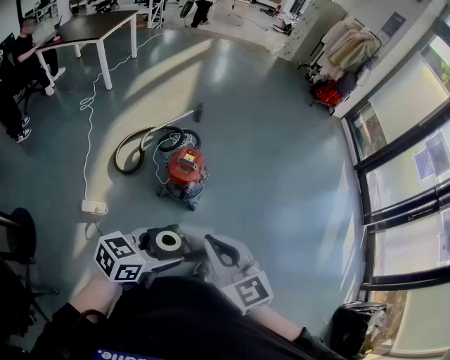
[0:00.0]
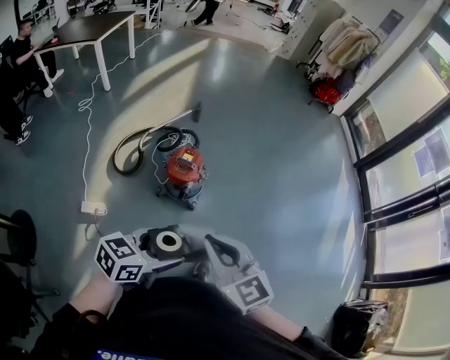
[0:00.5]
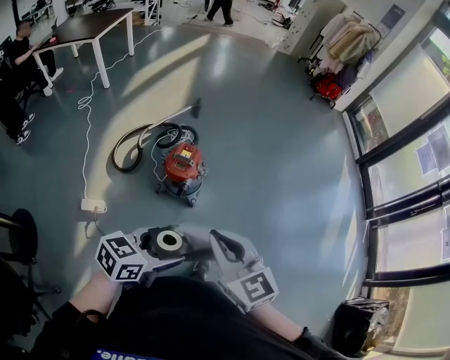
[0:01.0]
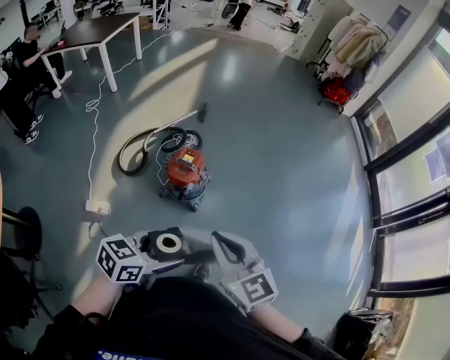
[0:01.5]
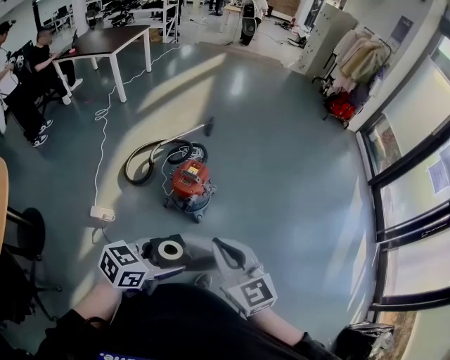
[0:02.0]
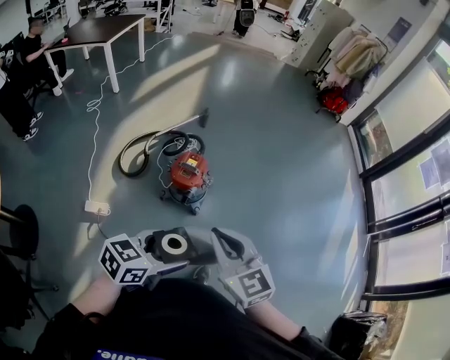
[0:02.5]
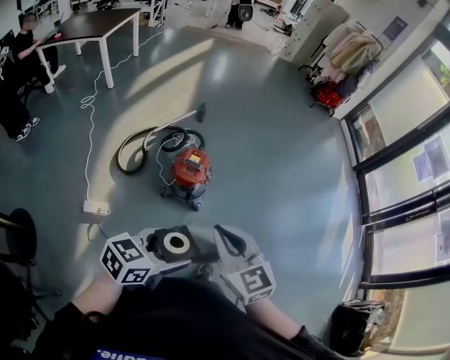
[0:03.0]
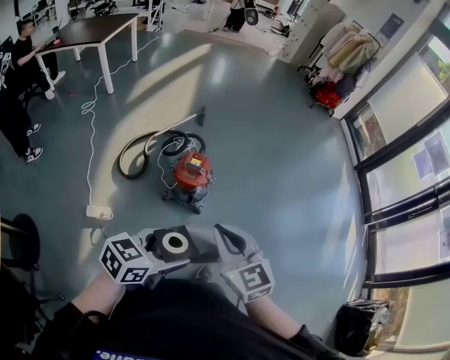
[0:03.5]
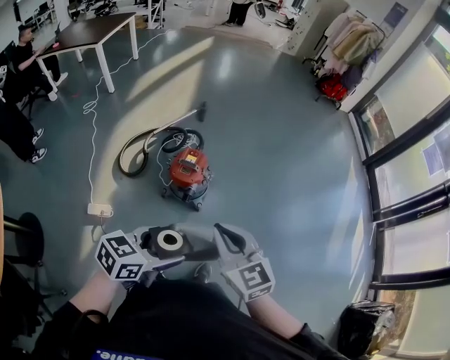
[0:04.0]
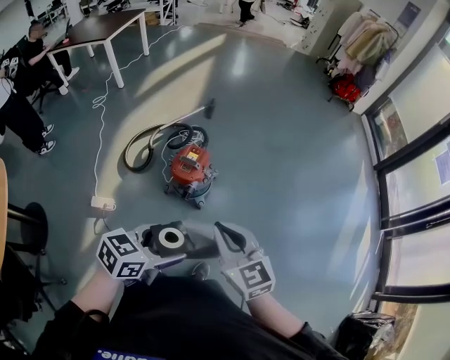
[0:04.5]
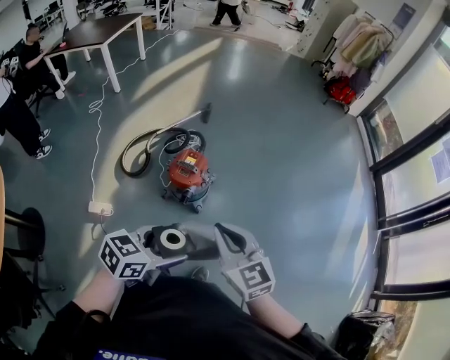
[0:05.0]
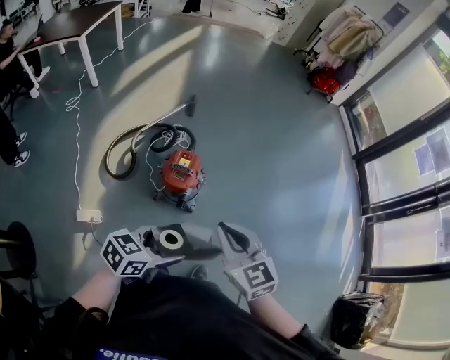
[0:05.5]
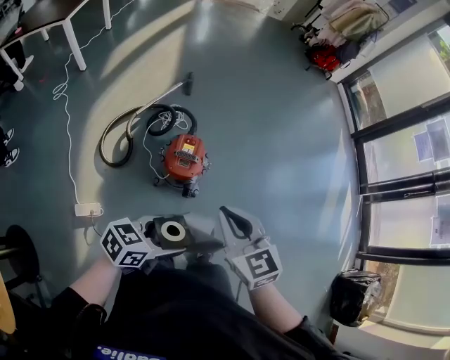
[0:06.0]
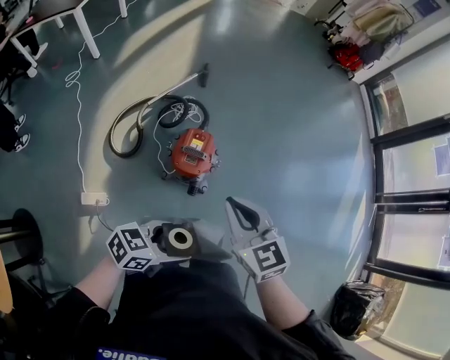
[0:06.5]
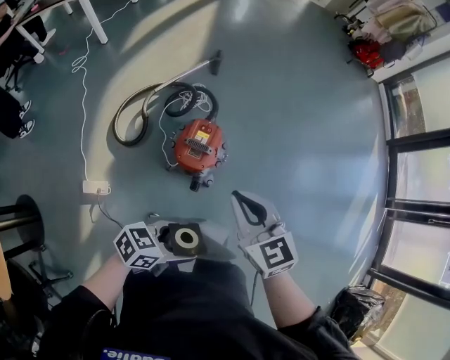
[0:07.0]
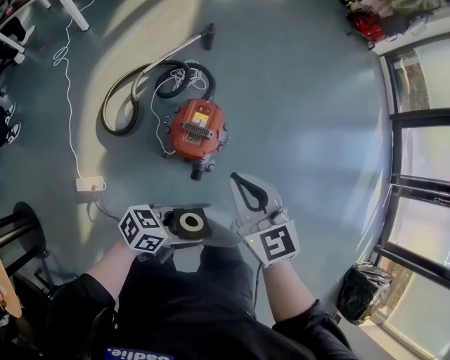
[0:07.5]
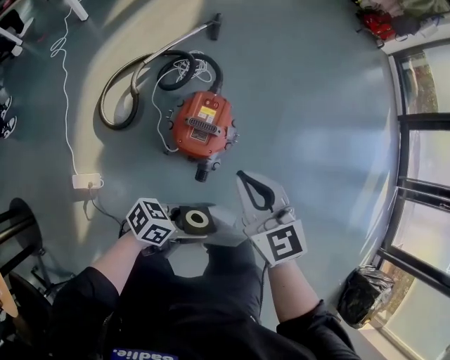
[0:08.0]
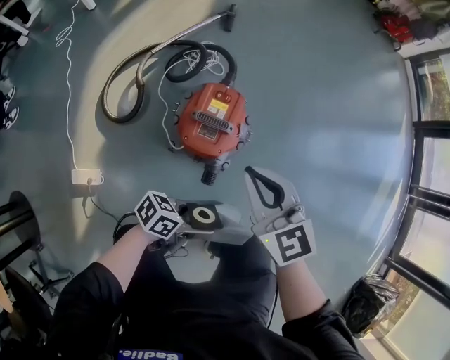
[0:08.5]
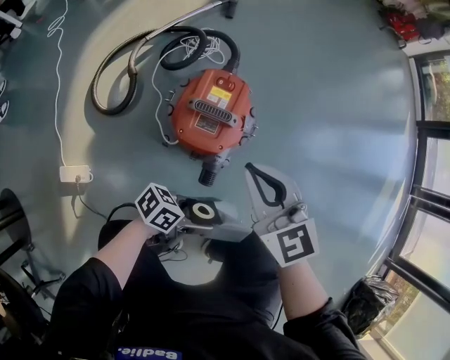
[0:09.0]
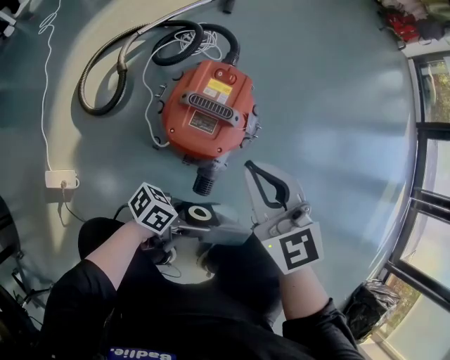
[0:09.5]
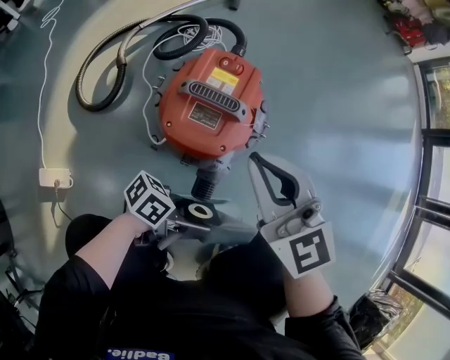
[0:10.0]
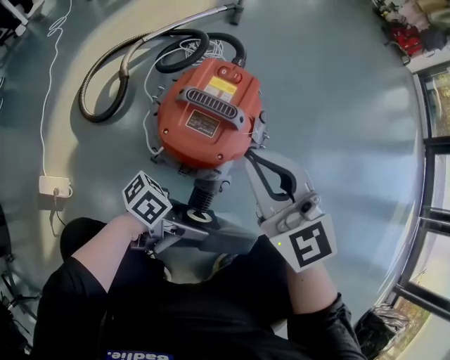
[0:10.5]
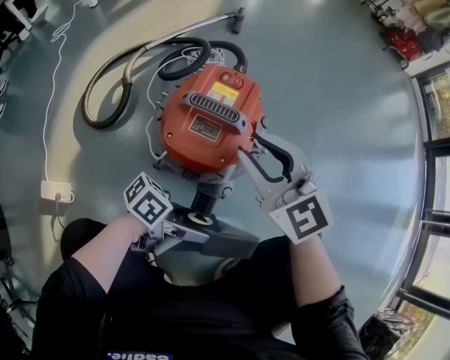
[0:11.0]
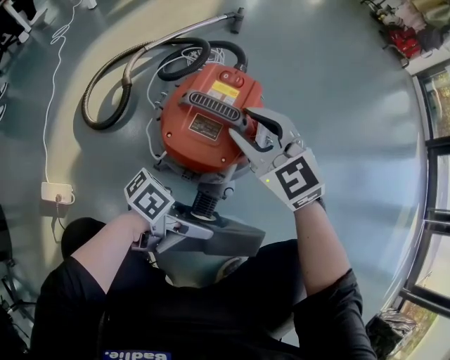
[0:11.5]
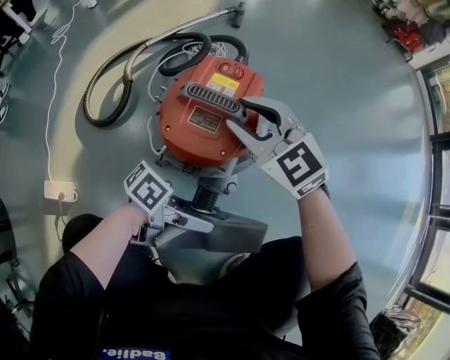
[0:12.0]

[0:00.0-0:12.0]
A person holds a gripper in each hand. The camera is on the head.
0:00.0 to 0:02.0: Both grippers move to the right, about 5 cm.
0:04.0 to 0:06.0: The right gripper is displaced to the left and forward by roughly 15 cm; the left gripper goes about 15 cm to the left, forward and downward.
0:06.0 to 0:08.0: Both grippers move downward, roughly 25 cm. The left gripper rotates approximately 20 degrees.
0:08.0 to 0:10.0: Both grippers travel together downward, some 25 cm.
0:10.0 to 0:12.0: The right gripper heads downward, covering approximately 10 cm, swivels some 20 degrees, and opens its fingers.

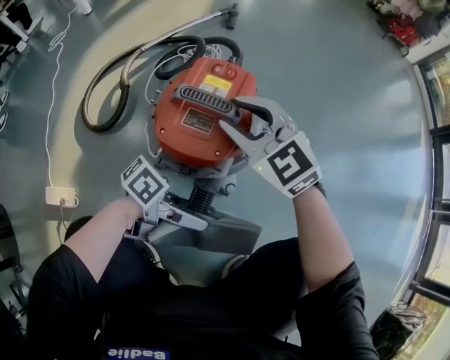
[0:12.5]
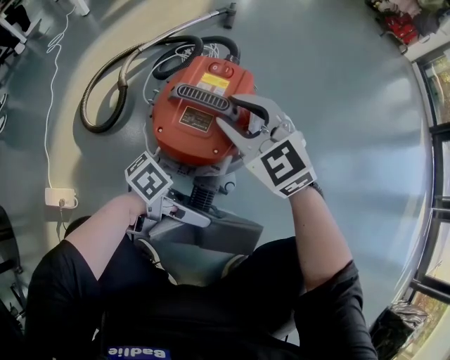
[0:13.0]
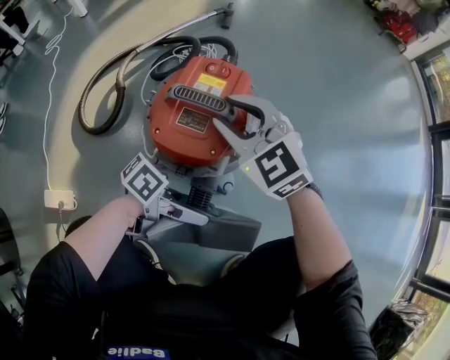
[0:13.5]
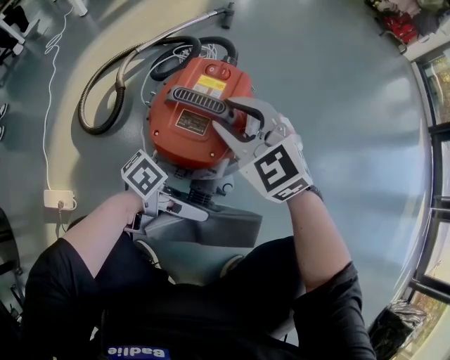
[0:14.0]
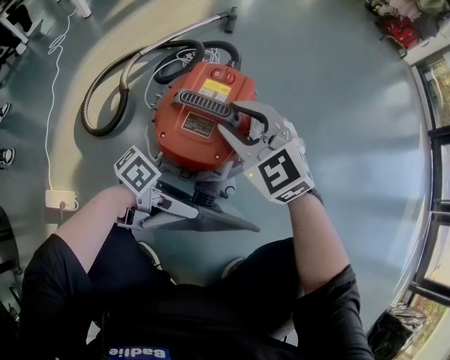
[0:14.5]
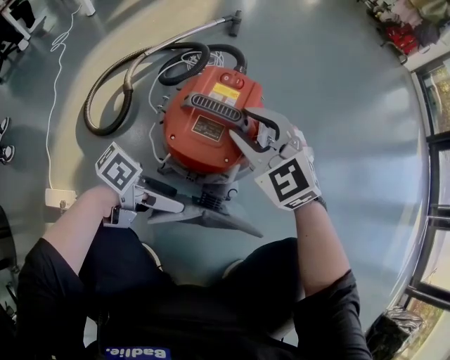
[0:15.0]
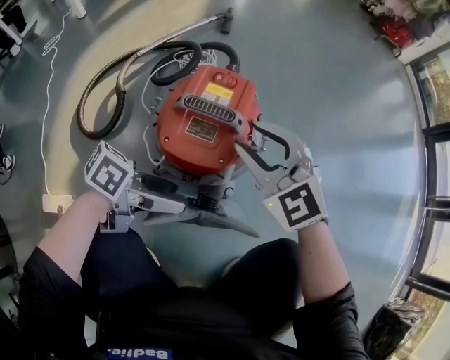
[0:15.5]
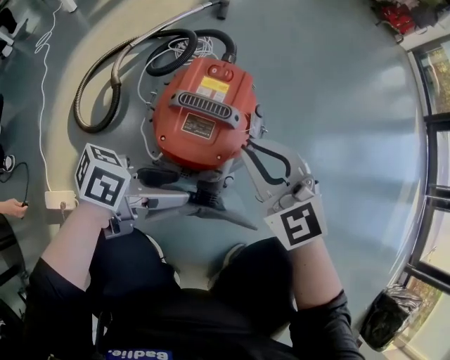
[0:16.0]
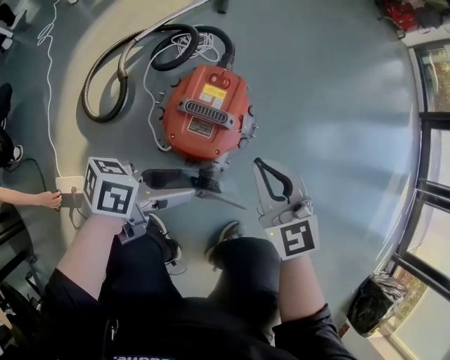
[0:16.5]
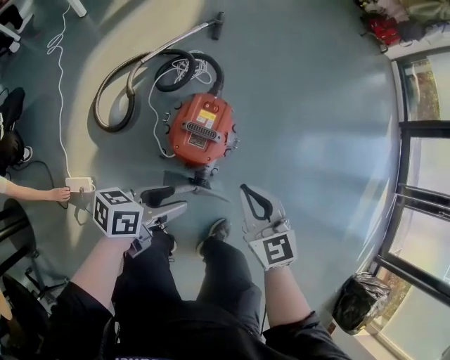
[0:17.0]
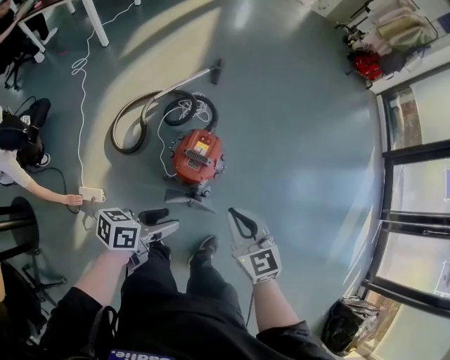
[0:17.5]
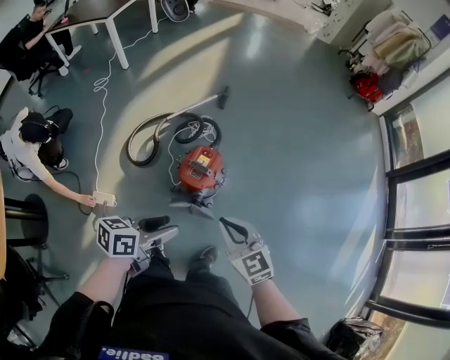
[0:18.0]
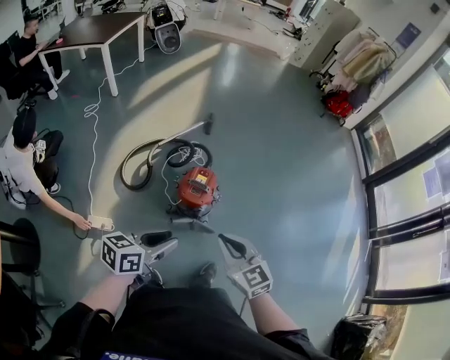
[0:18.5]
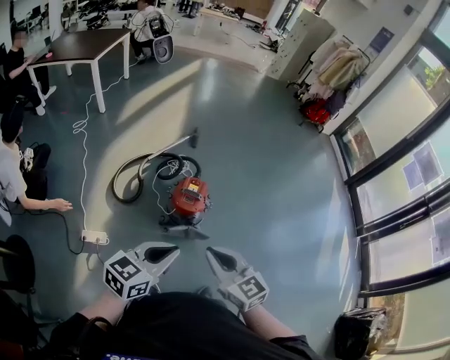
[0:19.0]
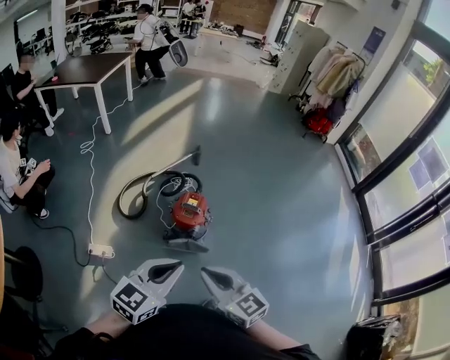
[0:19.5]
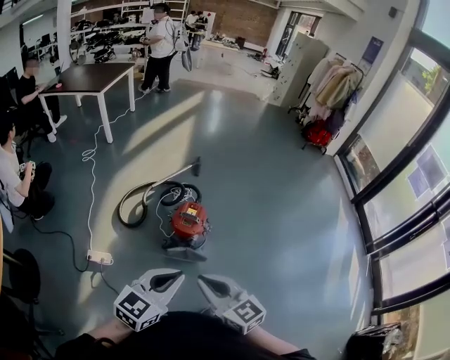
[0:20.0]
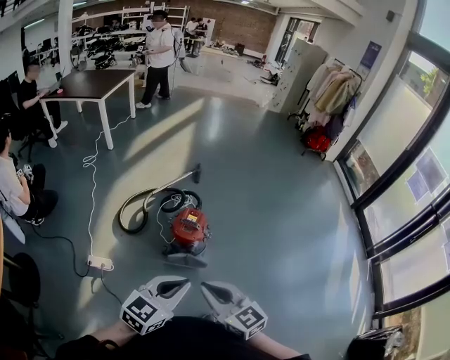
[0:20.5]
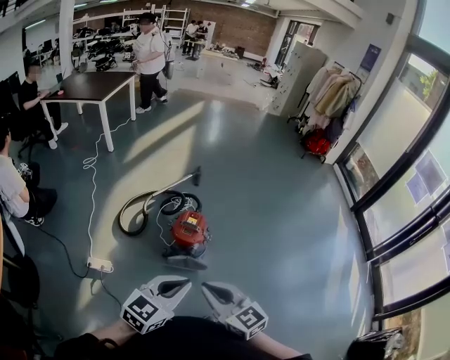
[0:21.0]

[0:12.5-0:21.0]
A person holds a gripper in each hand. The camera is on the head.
0:12.5 to 0:14.5: The grippers stay close to where they were, moving slightly.
0:14.5 to 0:16.5: Both grippers travel together upward, approximately 15 cm. The right gripper changes its angle by approximately 30 degrees, and closes its fingers. The left gripper rotates about 30 degrees, and closes up.
0:16.5 to 0:19.0: Both grippers move upward and backward, about 50 cm. The left gripper rotates about 40 degrees, and closes.
0:19.0 to 0:21.0: The left gripper heads to the right, covering some 10 cm; the right gripper travels backward by some 5 cm.

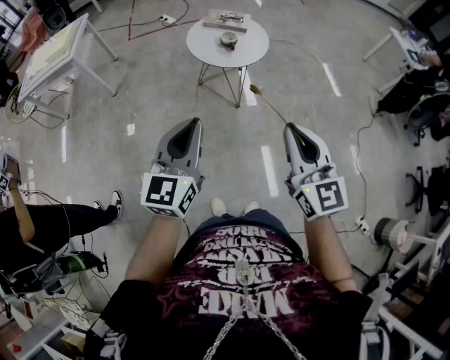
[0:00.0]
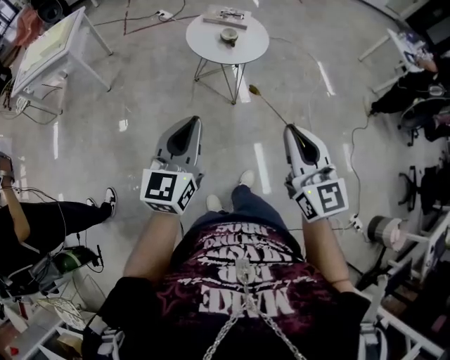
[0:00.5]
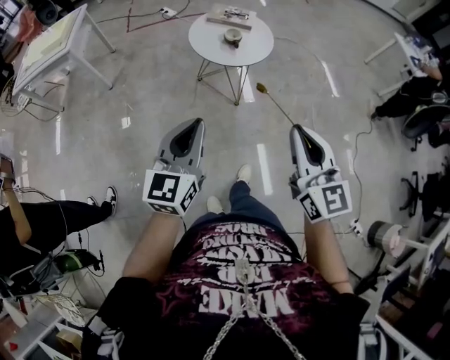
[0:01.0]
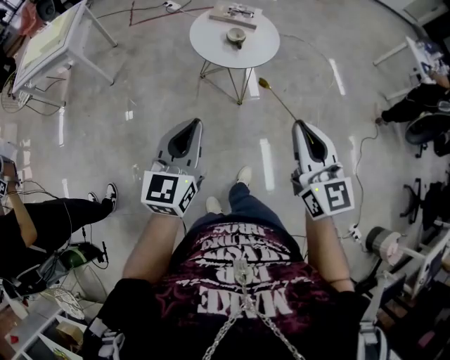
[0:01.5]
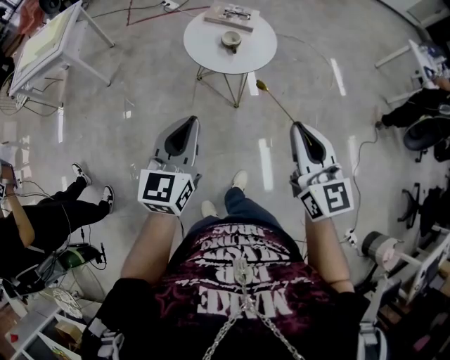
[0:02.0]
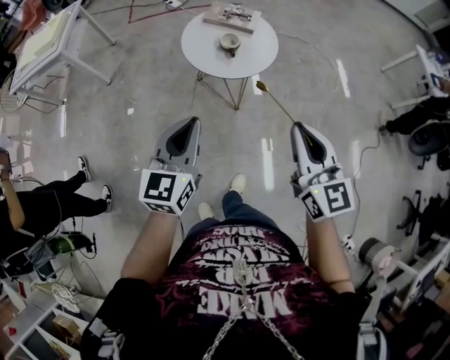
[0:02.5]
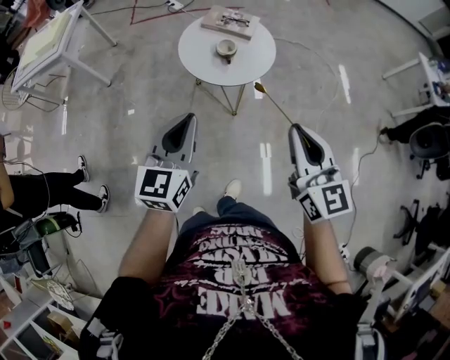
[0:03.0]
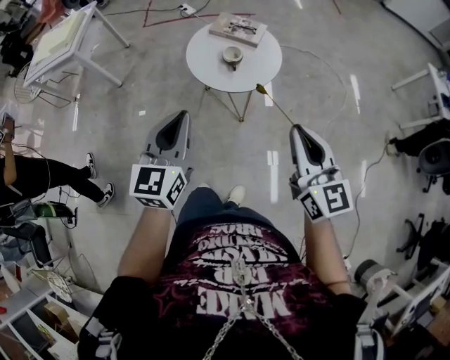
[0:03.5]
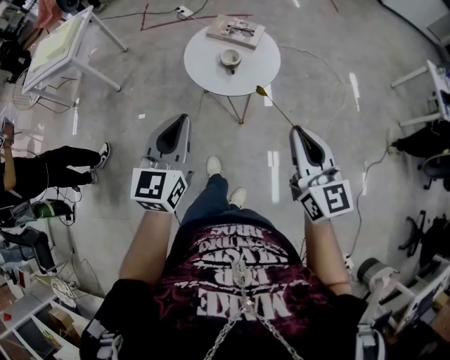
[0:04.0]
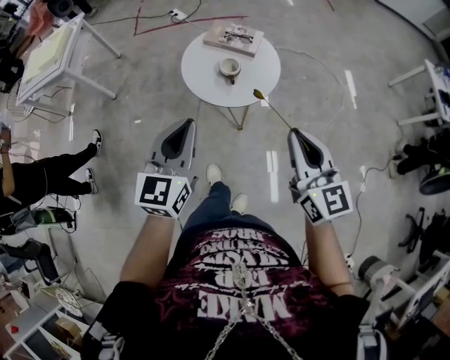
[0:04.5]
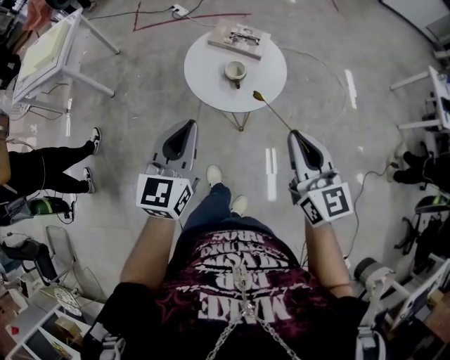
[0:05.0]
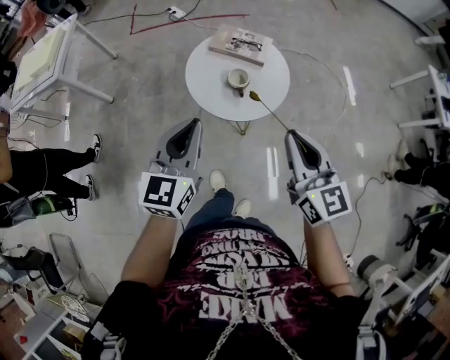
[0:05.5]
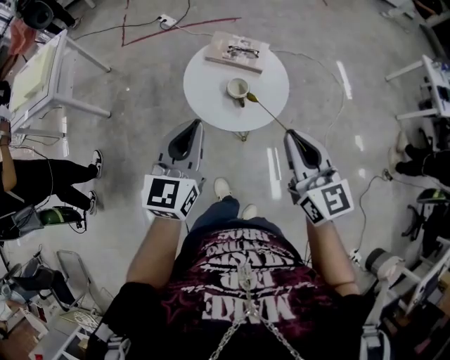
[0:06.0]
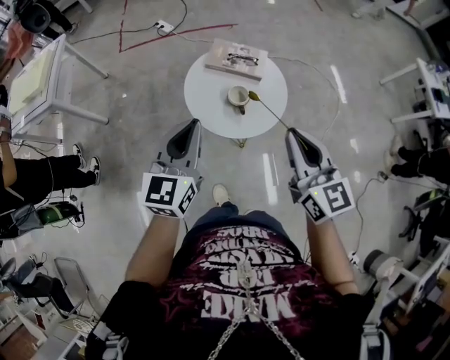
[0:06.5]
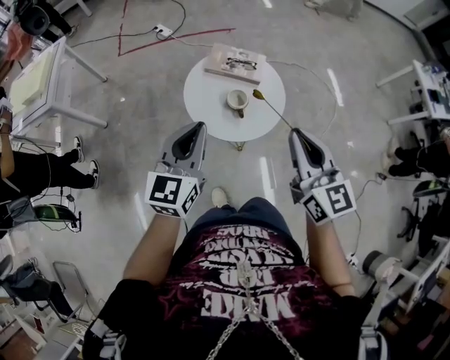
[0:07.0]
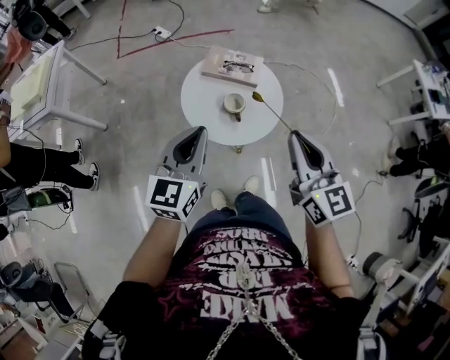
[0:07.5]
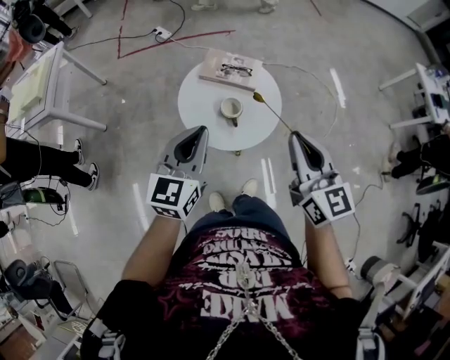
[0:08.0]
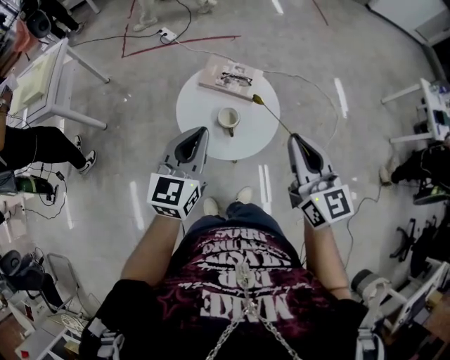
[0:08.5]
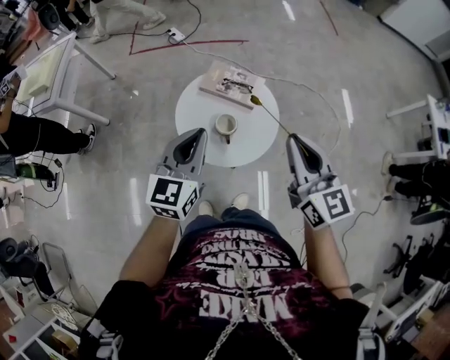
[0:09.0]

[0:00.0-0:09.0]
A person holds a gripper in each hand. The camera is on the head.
0:00.0 to 0:02.0: Both grippers move forward, roughly 15 cm.
0:02.0 to 0:04.5: Both grippers travel together forward, some 15 cm.
0:04.5 to 0:07.0: The right gripper goes approximately 15 cm forward and to the left; the left gripper travels forward by some 15 cm.
0:07.0 to 0:09.0: The grippers both shift forward and to the right by some 10 cm.
